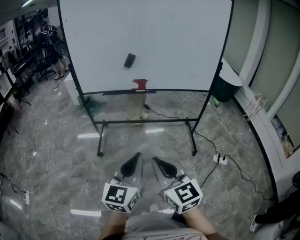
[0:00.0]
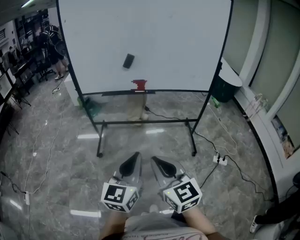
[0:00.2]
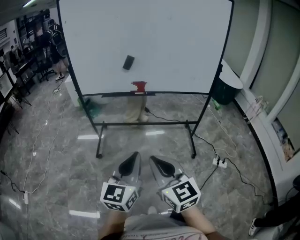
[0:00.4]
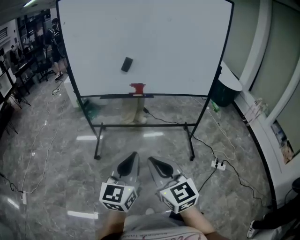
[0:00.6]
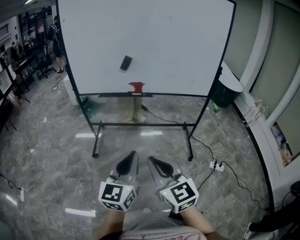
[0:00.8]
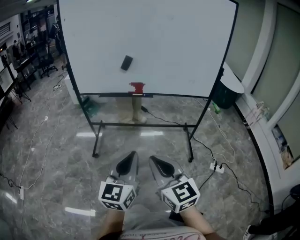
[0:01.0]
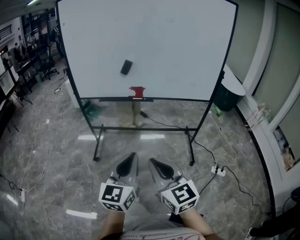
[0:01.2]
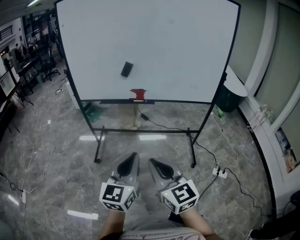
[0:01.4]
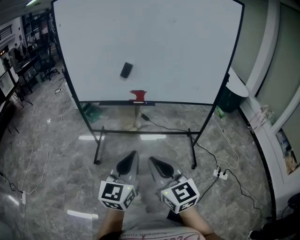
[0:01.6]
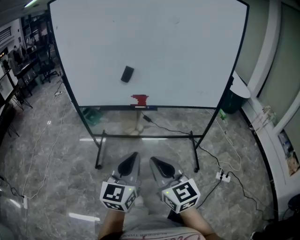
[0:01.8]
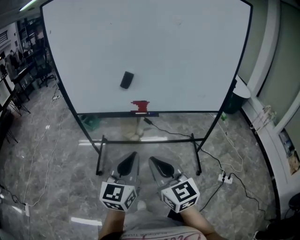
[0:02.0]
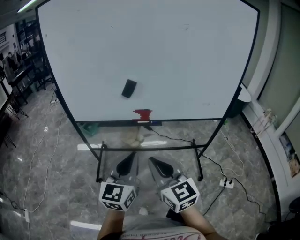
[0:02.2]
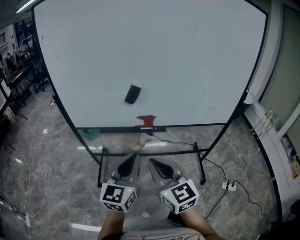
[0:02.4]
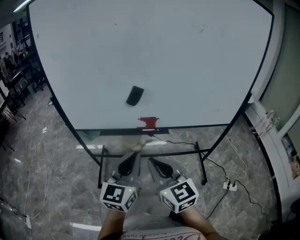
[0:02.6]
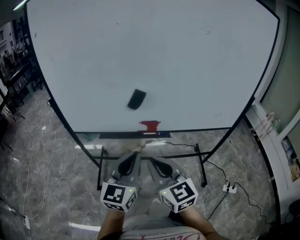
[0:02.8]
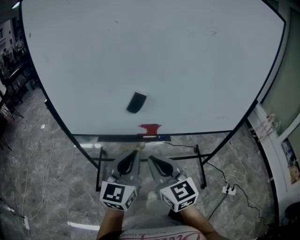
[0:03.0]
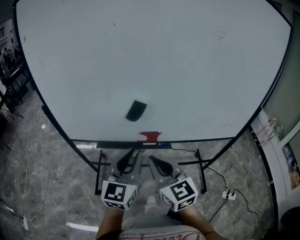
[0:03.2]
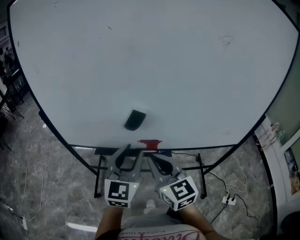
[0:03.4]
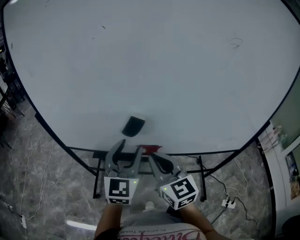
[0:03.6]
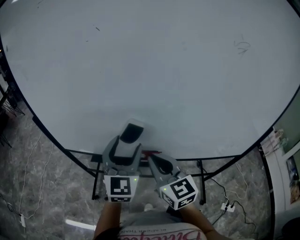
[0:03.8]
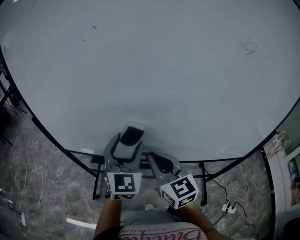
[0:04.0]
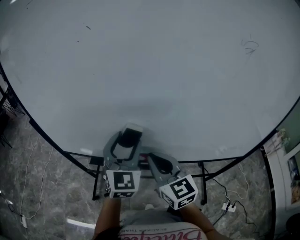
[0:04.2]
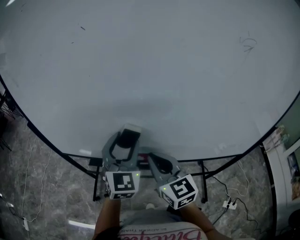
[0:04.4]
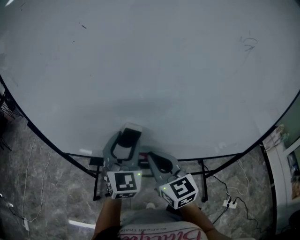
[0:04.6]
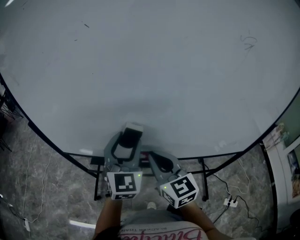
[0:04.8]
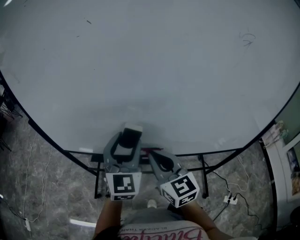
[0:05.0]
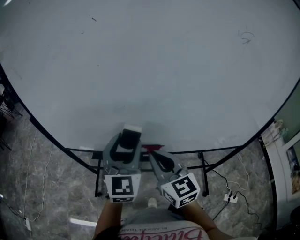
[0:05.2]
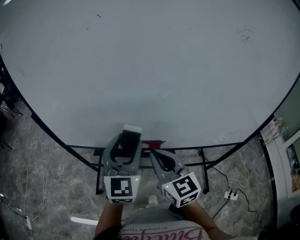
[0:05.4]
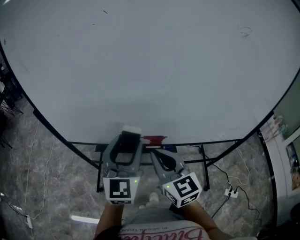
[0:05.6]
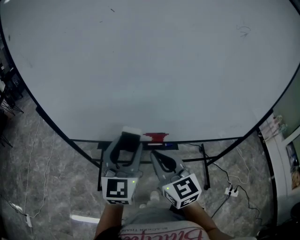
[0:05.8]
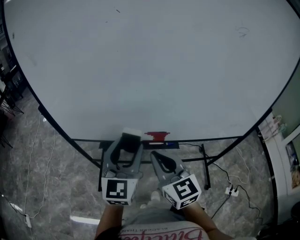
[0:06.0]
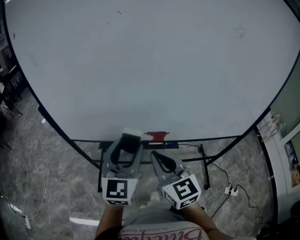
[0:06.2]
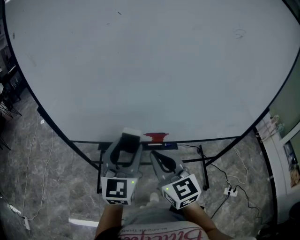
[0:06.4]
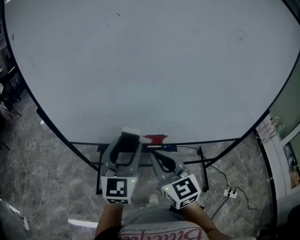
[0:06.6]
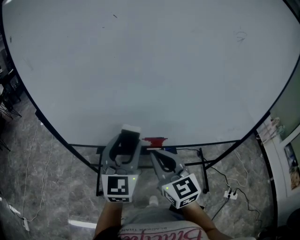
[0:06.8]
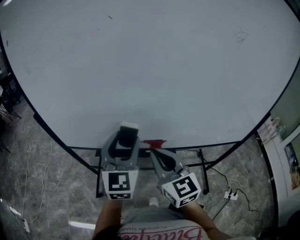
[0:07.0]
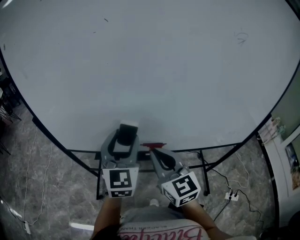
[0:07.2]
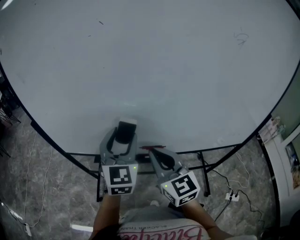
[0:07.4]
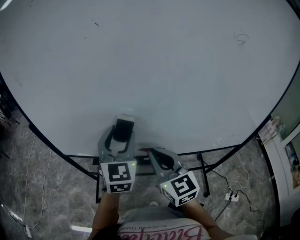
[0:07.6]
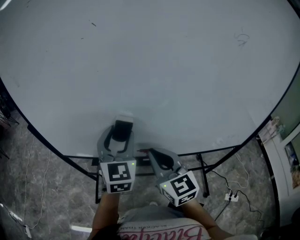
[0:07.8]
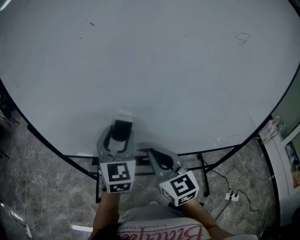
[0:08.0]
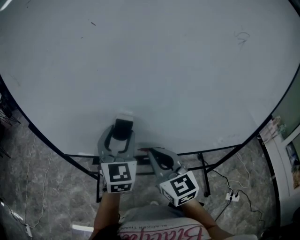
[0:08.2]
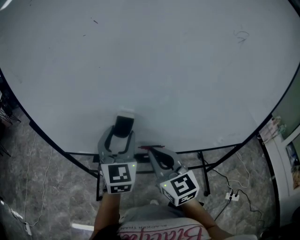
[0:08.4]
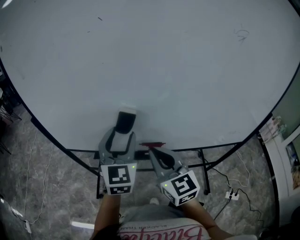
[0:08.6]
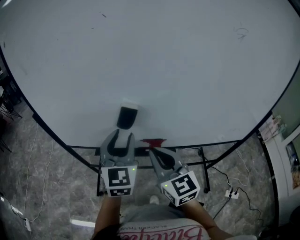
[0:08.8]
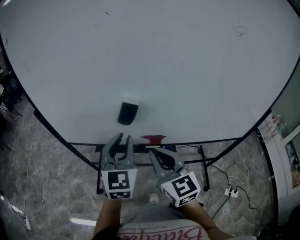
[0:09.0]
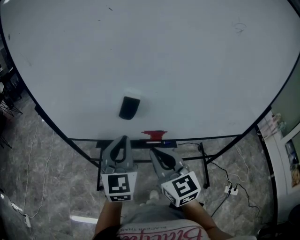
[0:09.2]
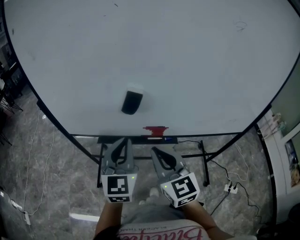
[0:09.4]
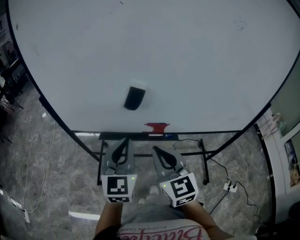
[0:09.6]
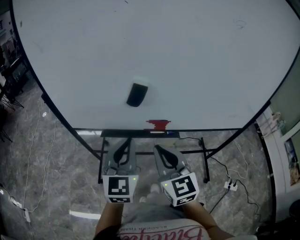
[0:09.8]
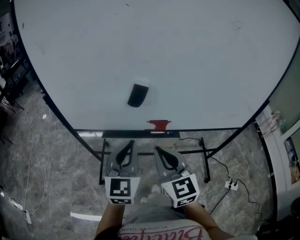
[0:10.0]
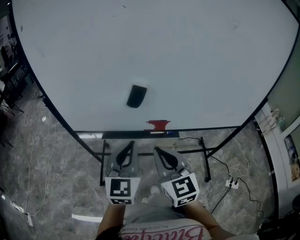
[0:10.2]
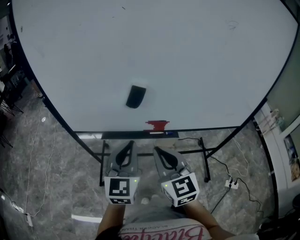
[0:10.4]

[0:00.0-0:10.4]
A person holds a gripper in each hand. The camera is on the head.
0:00.0 to 0:01.4: The two grippers go about 5 cm forward.
0:01.4 to 0:03.0: Both grippers move forward, about 30 cm.
0:03.0 to 0:04.4: The grippers both shift forward by some 20 cm. The left gripper changes its angle by about 30 degrees, and opens.
0:04.4 to 0:06.0: The grippers both shift backward and to the left by about 10 cm.
0:06.0 to 0:07.4: The right gripper shifts roughly 5 cm forward. The left gripper shifts some 10 cm forward.
0:07.4 to 0:09.0: The left gripper ends up some 5 cm from where it was, and closes up.
0:09.0 to 0:10.4: The two grippers go approximately 10 cm backward.

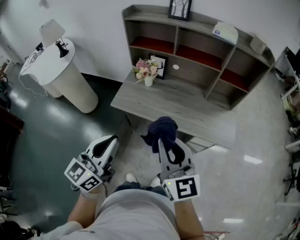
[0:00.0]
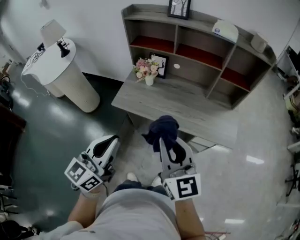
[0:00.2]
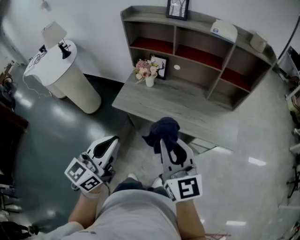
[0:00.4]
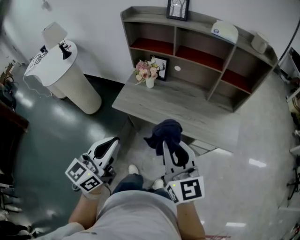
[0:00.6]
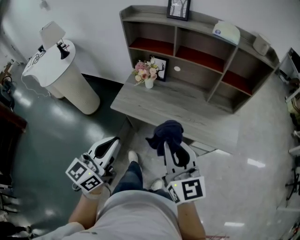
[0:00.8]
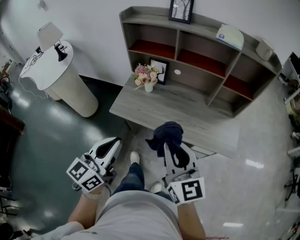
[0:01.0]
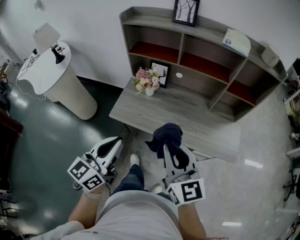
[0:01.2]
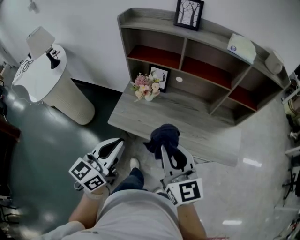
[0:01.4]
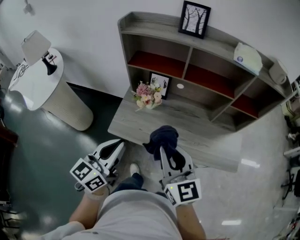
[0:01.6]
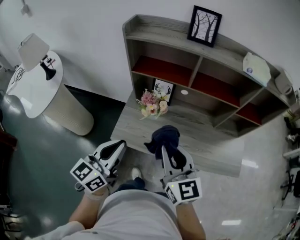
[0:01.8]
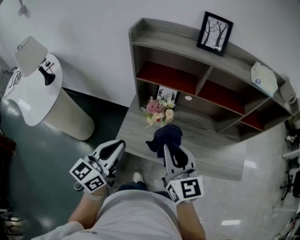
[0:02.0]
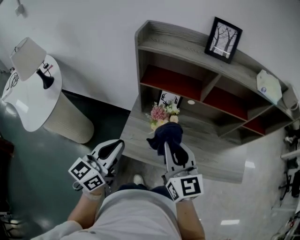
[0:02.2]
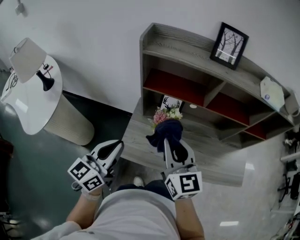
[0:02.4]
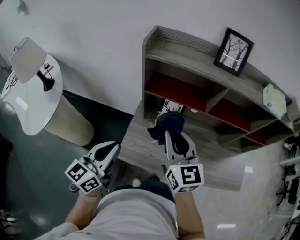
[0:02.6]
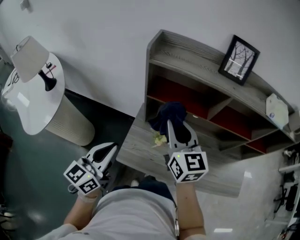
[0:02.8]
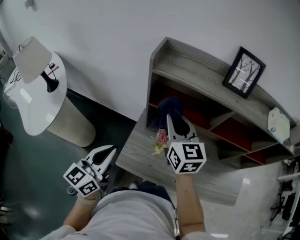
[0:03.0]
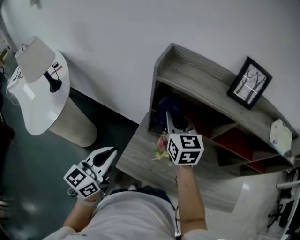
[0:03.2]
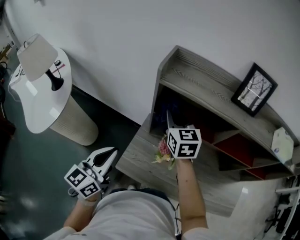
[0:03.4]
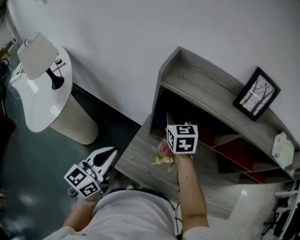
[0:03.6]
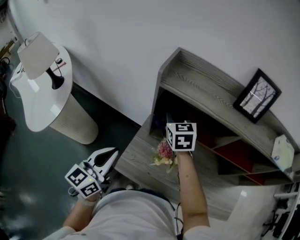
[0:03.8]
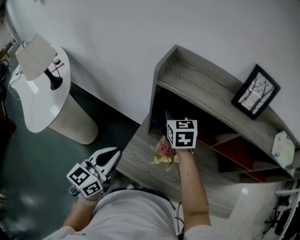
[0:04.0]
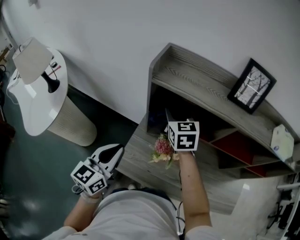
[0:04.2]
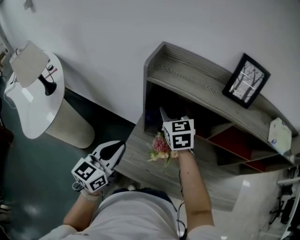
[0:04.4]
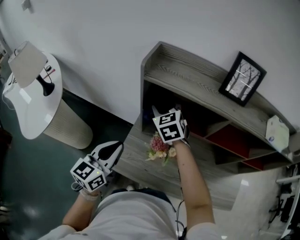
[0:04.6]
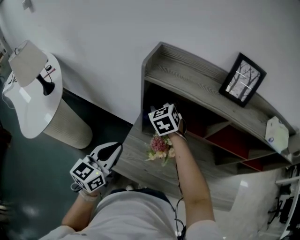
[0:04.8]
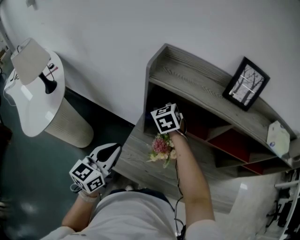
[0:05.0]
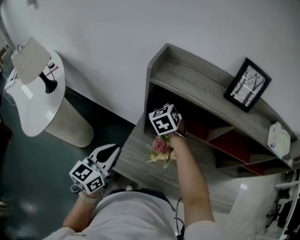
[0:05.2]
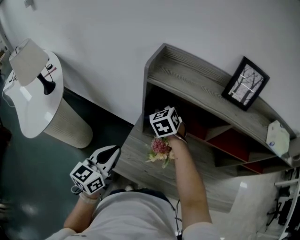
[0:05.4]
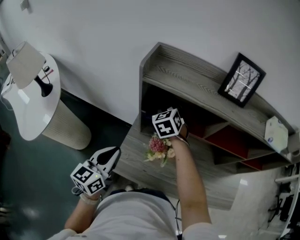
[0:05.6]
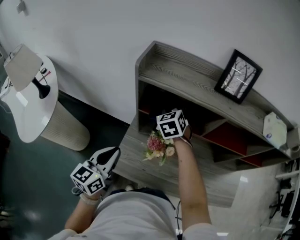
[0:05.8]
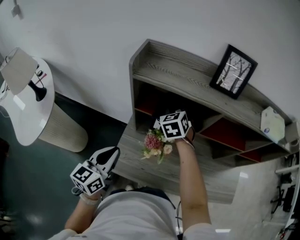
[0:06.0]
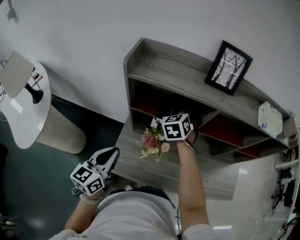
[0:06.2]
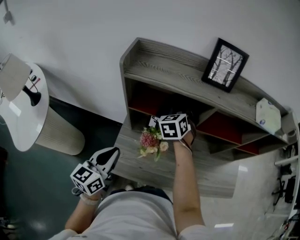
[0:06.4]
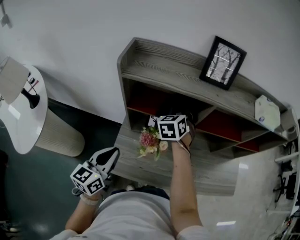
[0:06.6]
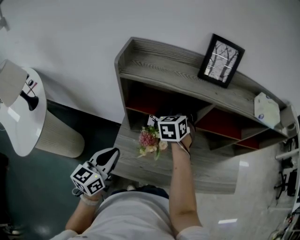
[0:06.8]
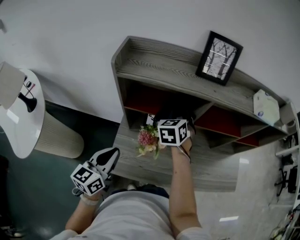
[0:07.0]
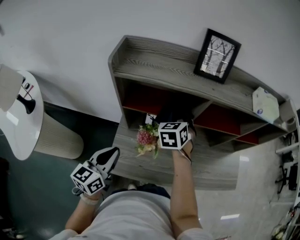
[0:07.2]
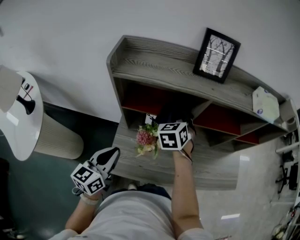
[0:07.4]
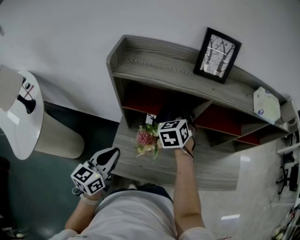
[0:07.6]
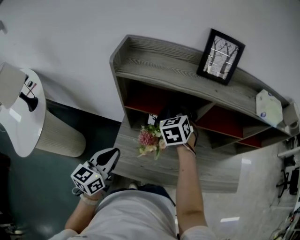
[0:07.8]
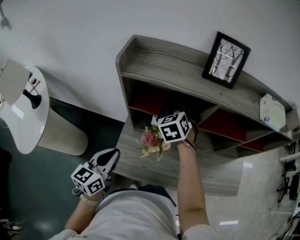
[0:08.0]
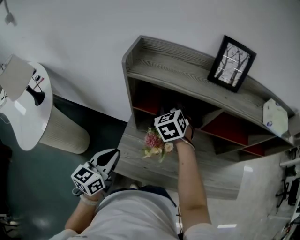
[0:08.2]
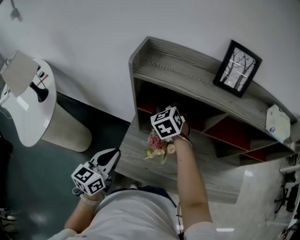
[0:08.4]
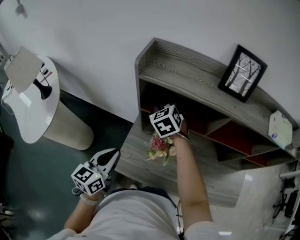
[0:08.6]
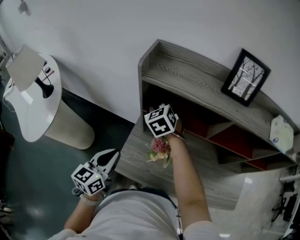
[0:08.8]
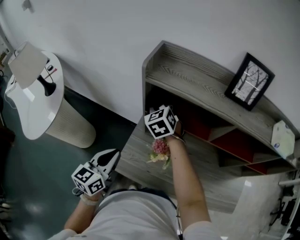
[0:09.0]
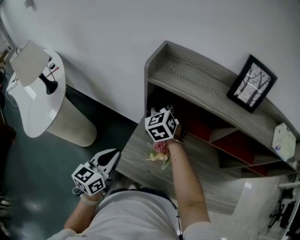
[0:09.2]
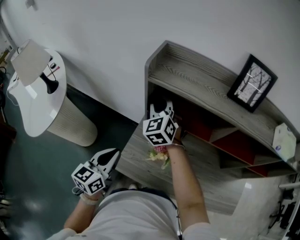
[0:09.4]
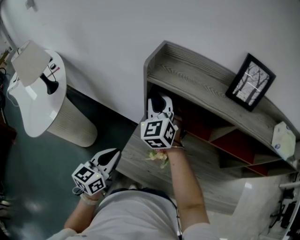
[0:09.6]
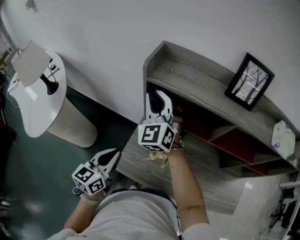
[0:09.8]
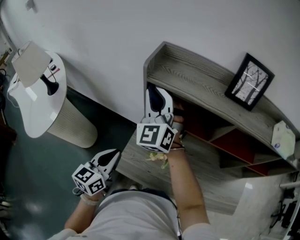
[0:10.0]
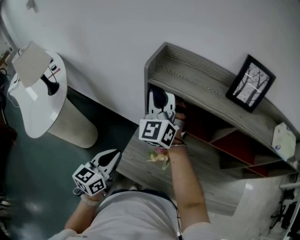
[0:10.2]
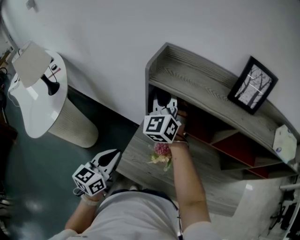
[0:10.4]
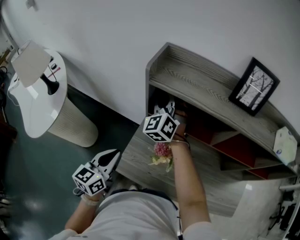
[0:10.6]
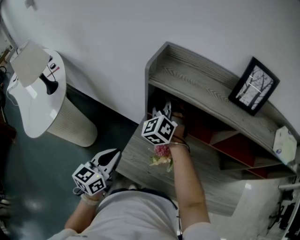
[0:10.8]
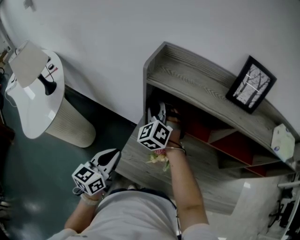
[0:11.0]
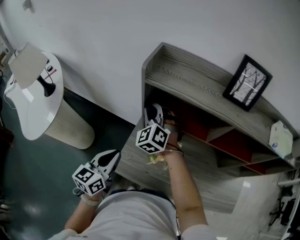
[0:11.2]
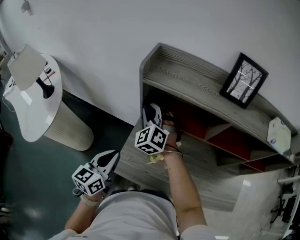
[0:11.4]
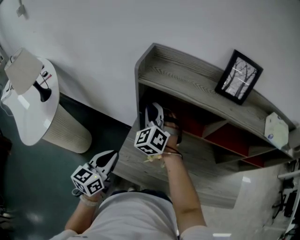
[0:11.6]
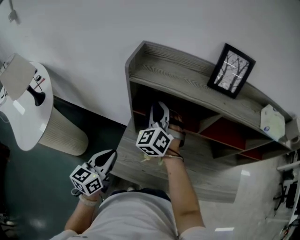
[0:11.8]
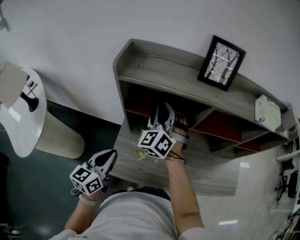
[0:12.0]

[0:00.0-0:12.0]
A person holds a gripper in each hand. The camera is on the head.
0:00.0 to 0:01.6: Both grippers move forward, approximately 20 cm.
0:01.6 to 0:03.0: The right gripper is displaced forward and to the left by approximately 35 cm. The left gripper goes some 25 cm to the left and forward.
0:03.0 to 0:04.4: The right gripper travels forward and downward by roughly 10 cm, changes its angle by roughly 20 degrees, and opens its fingers; the left gripper travels forward by roughly 5 cm.
0:04.4 to 0:06.0: The right gripper is displaced to the right by approximately 5 cm, changes its angle by approximately 20 degrees, and closes.
0:06.0 to 0:07.6: The right gripper is displaced to the right by roughly 10 cm.
0:07.6 to 0:09.0: The left gripper shifts roughly 5 cm to the left. The right gripper is displaced to the left by approximately 20 cm, and changes its angle by approximately 30 degrees.
0:09.0 to 0:10.4: The right gripper heads upward, covering some 10 cm, and turns by some 30 degrees.
0:10.4 to 0:12.0: The right gripper heads to the right, covering some 15 cm, and turns by roughly 30 degrees.

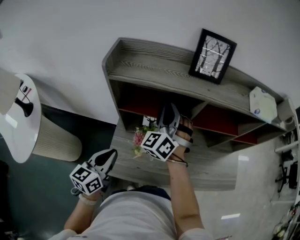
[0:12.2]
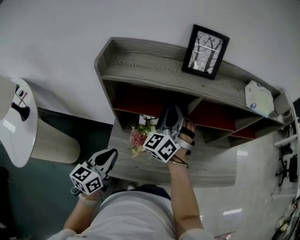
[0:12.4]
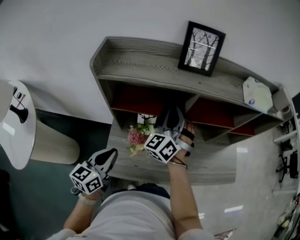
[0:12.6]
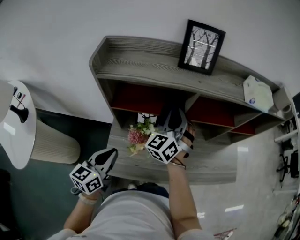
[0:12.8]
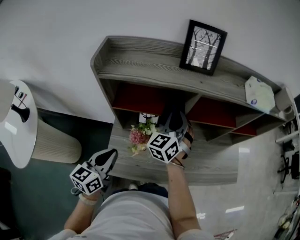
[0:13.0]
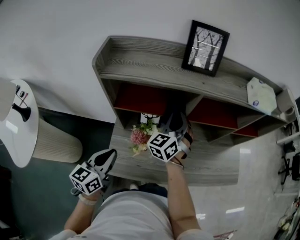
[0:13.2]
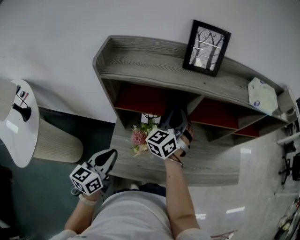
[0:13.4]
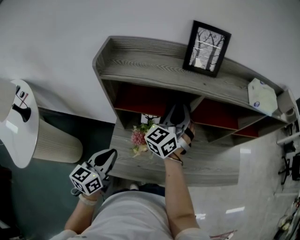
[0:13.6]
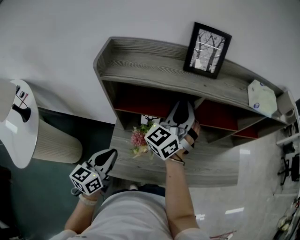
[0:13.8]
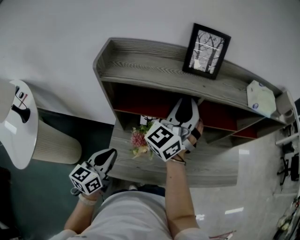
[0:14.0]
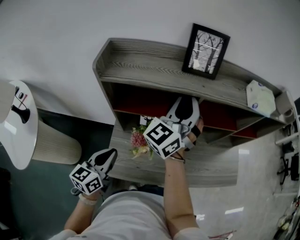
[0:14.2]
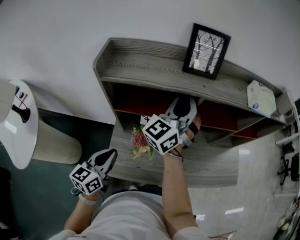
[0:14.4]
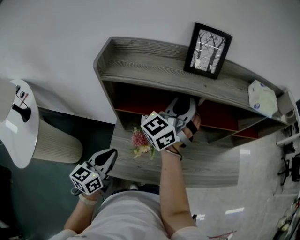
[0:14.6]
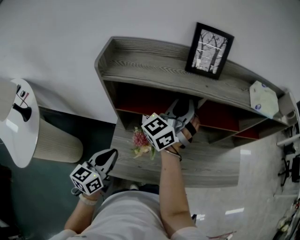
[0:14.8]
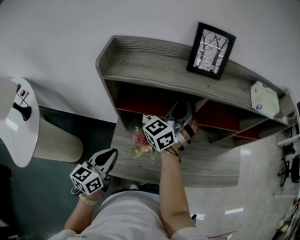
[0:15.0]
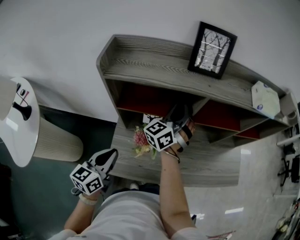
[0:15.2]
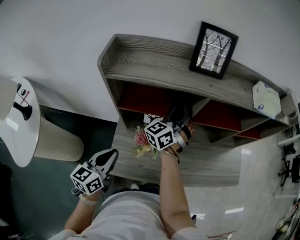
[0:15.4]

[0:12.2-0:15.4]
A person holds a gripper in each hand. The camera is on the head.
0:12.2 to 0:13.8: The right gripper is displaced to the right by approximately 5 cm, and turns by roughly 30 degrees.
0:13.8 to 0:15.4: The right gripper is displaced downward by about 10 cm.
